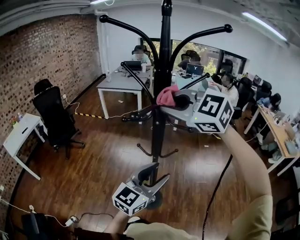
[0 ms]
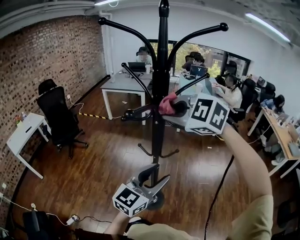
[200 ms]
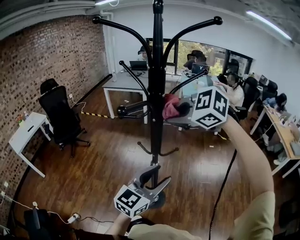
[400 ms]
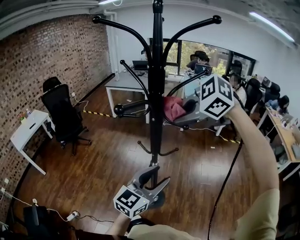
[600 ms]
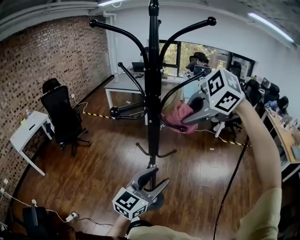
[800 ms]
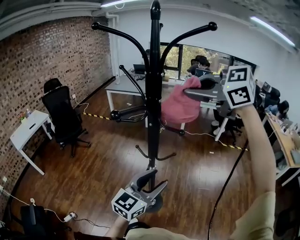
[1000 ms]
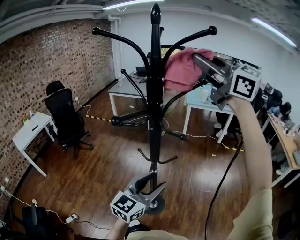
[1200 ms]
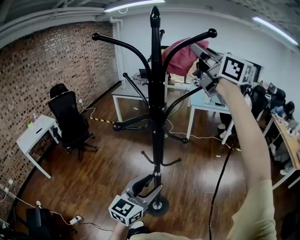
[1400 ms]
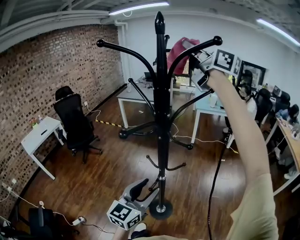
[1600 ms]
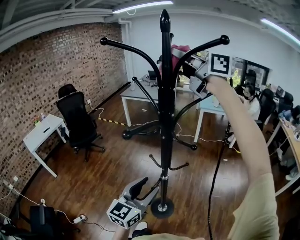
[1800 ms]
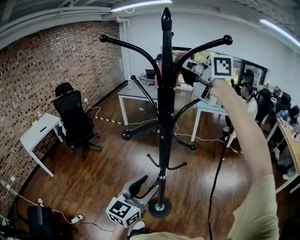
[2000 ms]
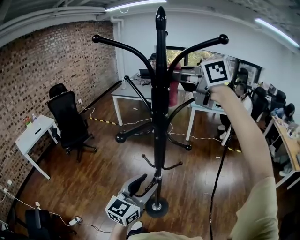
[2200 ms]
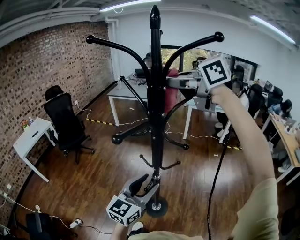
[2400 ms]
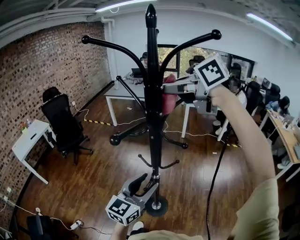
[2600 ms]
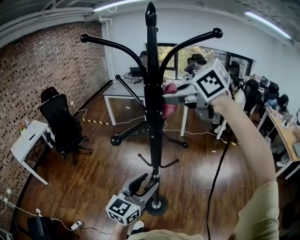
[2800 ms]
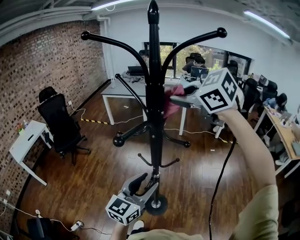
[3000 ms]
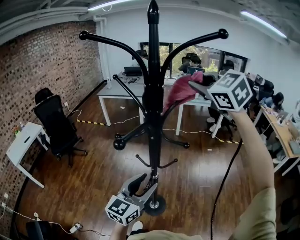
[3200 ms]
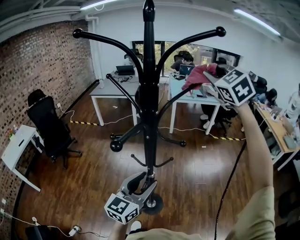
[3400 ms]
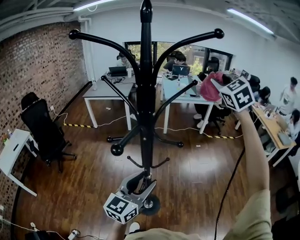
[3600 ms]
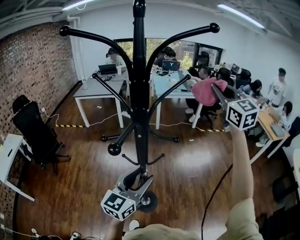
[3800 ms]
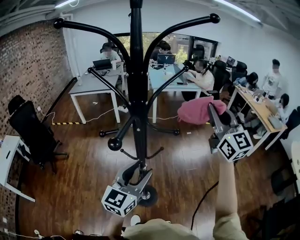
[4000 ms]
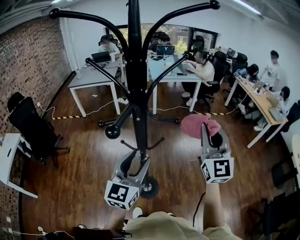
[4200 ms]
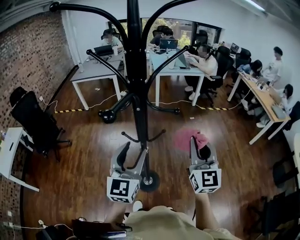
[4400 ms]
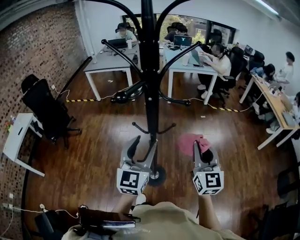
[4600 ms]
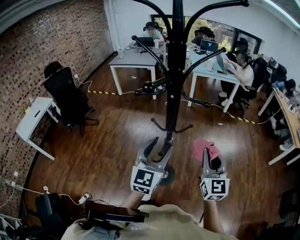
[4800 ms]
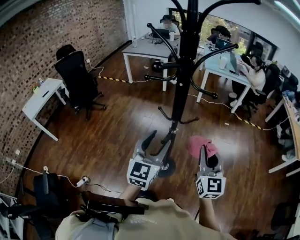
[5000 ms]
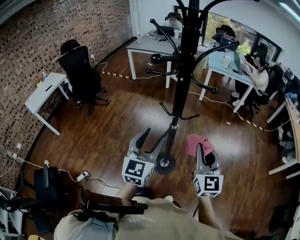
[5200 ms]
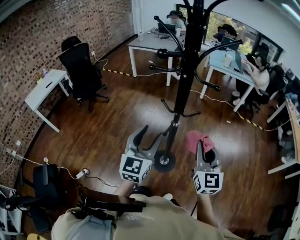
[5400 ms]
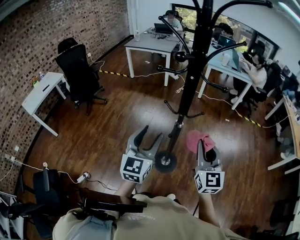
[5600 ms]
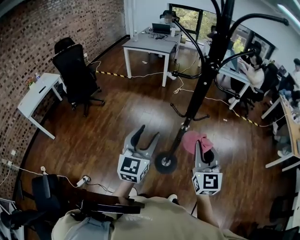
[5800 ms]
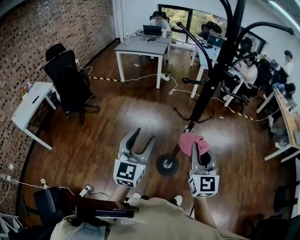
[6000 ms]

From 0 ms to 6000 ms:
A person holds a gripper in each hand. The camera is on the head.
From 0 ms to 1600 ms: The right gripper shifts about 30 cm upward, forward and to the right, and tips its fingers upward by approximately 40 degrees.
From 1600 ms to 3000 ms: The right gripper shifts about 20 cm downward, and angles its fingers downward, by about 50 degrees.
From 3000 ms to 4400 ms: The right gripper shifts approximately 20 cm downward, and tips its fingers upward by roughly 40 degrees.
From 4400 ms to 6000 ms: The grippers both shift to the left by about 20 cm.

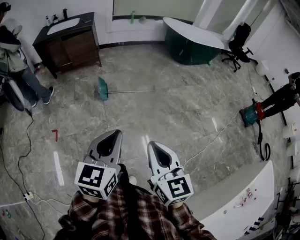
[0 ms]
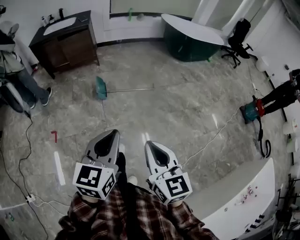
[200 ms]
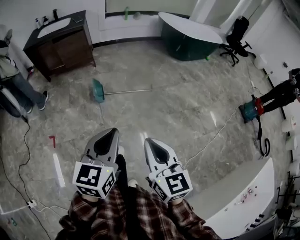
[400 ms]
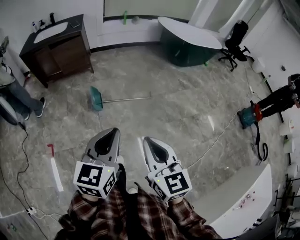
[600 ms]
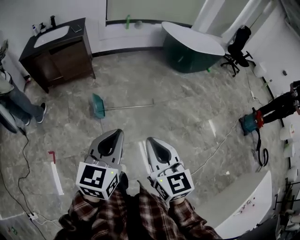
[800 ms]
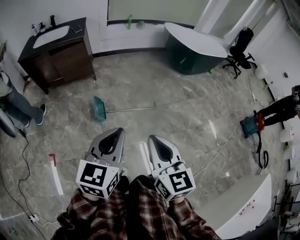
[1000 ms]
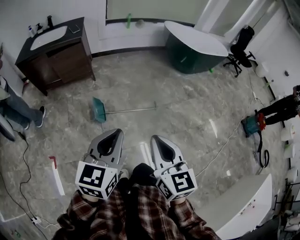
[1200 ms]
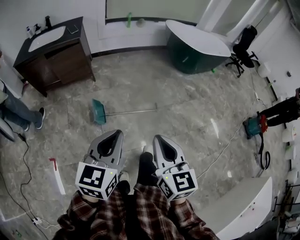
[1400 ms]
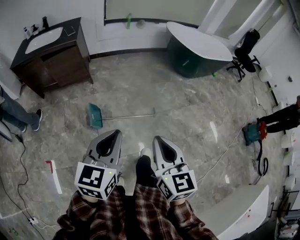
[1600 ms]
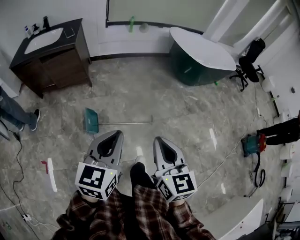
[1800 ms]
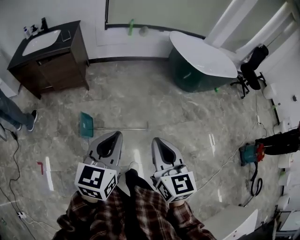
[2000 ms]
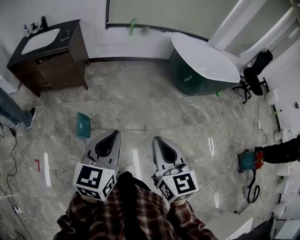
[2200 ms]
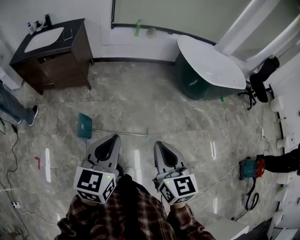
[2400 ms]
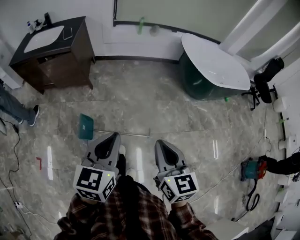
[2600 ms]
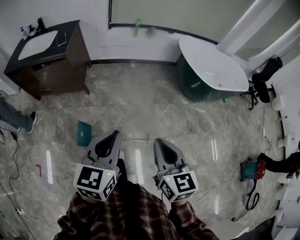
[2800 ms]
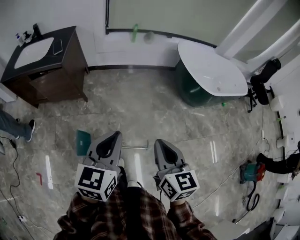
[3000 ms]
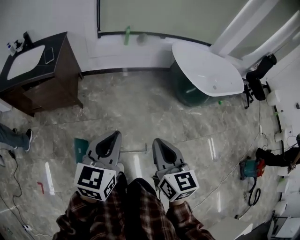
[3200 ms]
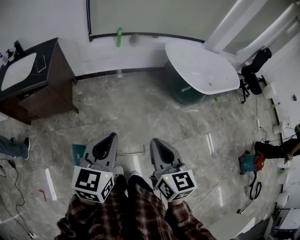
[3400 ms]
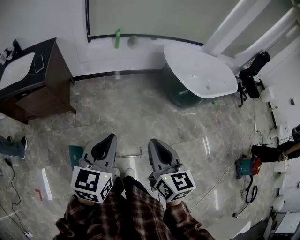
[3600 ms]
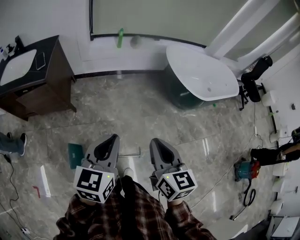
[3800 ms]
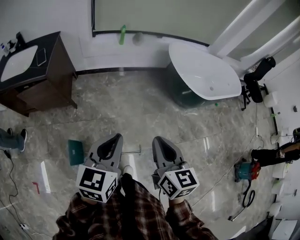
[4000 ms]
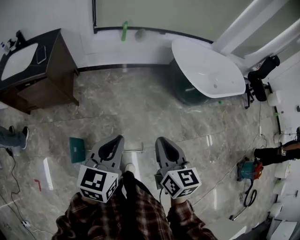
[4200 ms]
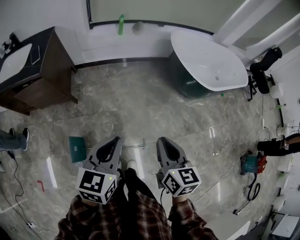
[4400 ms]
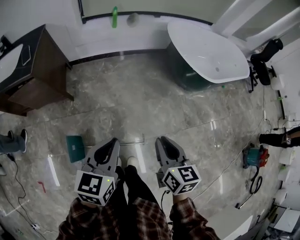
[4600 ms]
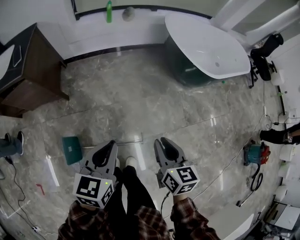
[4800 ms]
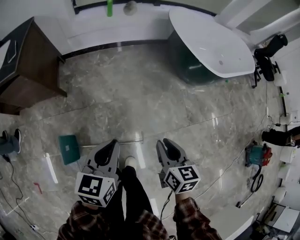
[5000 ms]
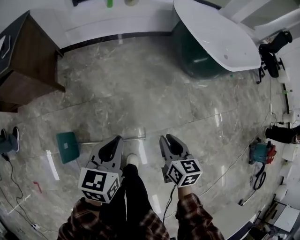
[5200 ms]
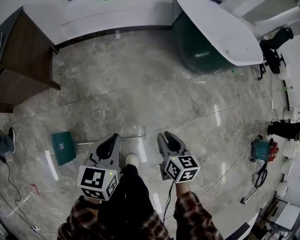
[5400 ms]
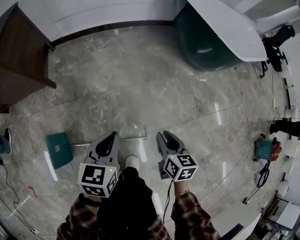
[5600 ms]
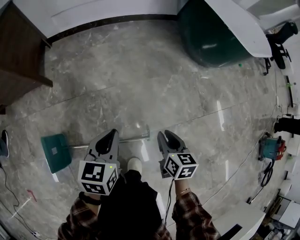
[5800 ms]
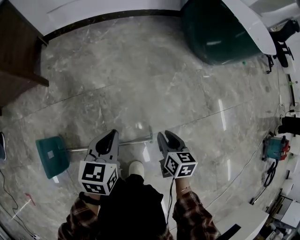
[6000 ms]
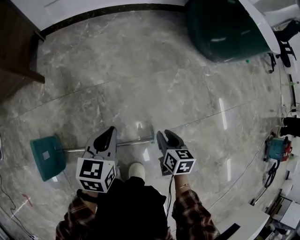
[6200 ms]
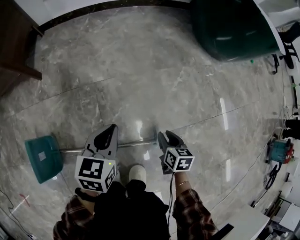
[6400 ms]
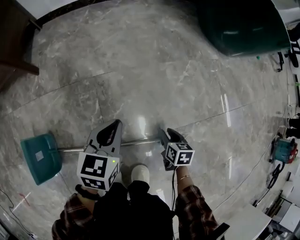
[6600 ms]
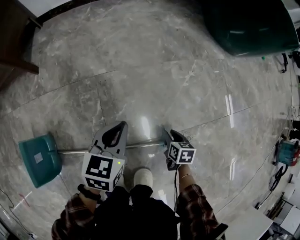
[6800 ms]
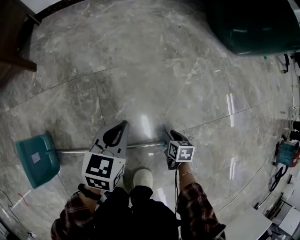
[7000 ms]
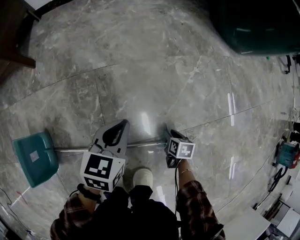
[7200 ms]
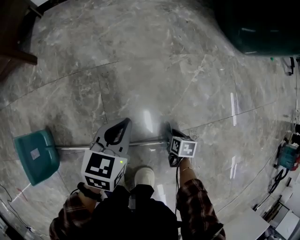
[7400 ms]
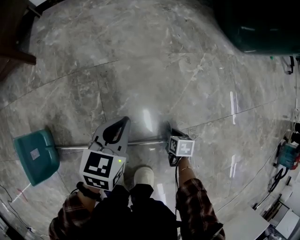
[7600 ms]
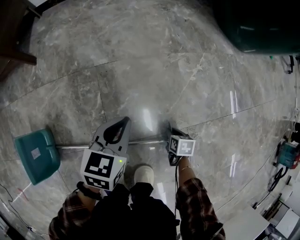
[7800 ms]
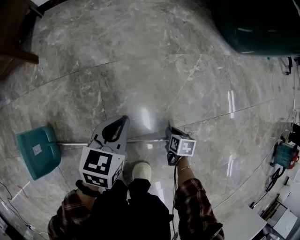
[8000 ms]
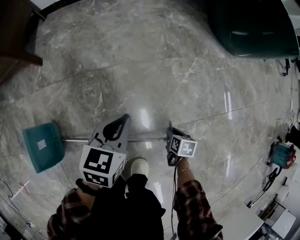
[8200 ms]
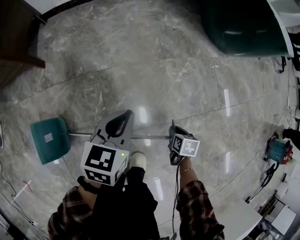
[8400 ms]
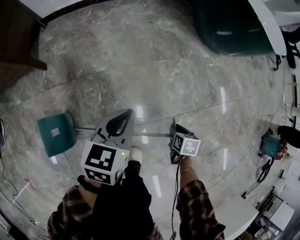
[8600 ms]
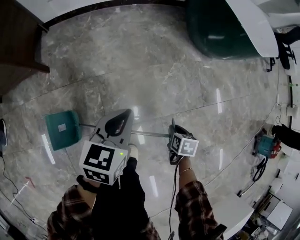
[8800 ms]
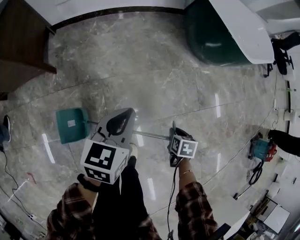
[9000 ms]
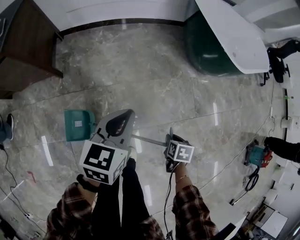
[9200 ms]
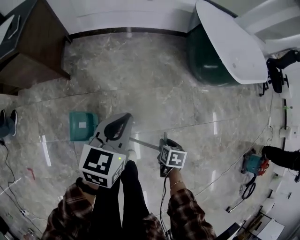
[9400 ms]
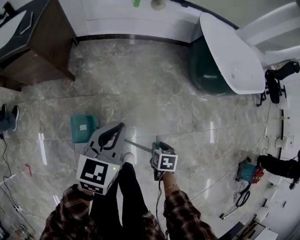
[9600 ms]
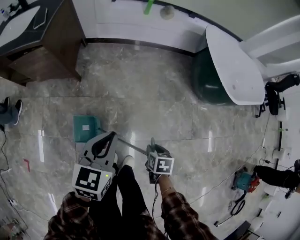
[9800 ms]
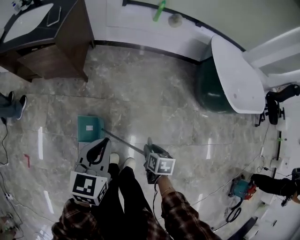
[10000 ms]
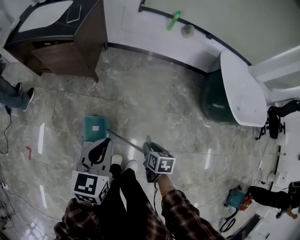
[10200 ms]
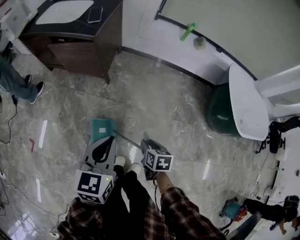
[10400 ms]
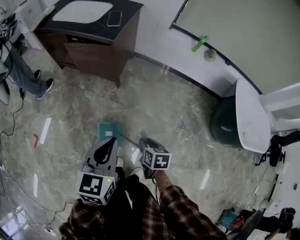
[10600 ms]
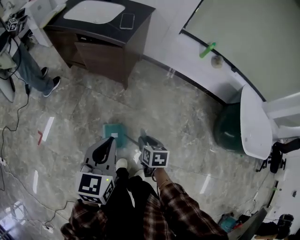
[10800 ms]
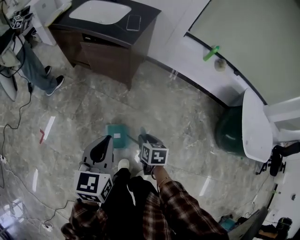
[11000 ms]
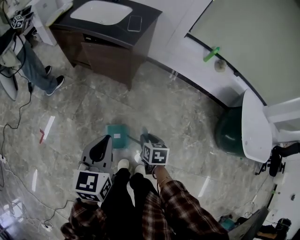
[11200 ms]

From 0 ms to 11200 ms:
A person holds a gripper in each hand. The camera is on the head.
From 0 ms to 1600 ms: The two grippers travel together, forward, about 40 cm.
From 1600 ms to 3200 ms: Both grippers are carried forward, roughly 40 cm.
From 3200 ms to 4800 ms: Both grippers travel together downward, to the right and forward, approximately 20 cm.
From 4800 ms to 6400 ms: The two grippers go roughly 60 cm downward. The right gripper rotates approximately 20 degrees.
From 6400 ms to 8000 ms: The left gripper goes some 10 cm downward. Meanwhile the right gripper shifts about 15 cm downward.
From 8000 ms to 9600 ms: Both grippers travel together upward, approximately 50 cm.
From 9600 ms to 11200 ms: The right gripper ends up about 40 cm from where it was, and swivels some 30 degrees; the left gripper ends up about 40 cm from where it was, and changes its angle by approximately 40 degrees.

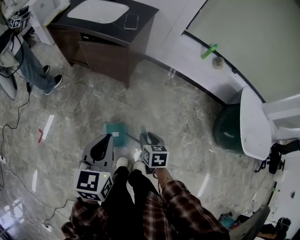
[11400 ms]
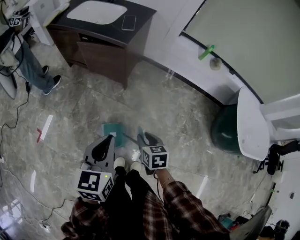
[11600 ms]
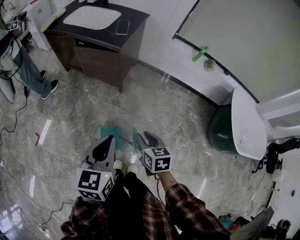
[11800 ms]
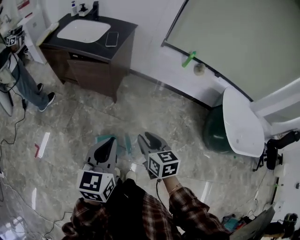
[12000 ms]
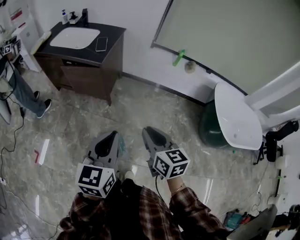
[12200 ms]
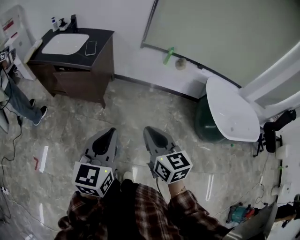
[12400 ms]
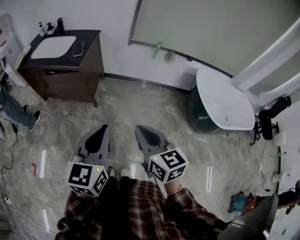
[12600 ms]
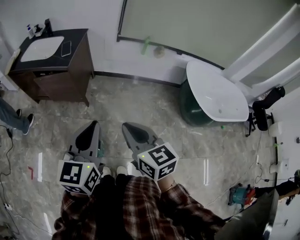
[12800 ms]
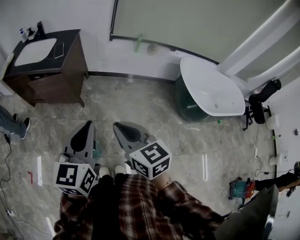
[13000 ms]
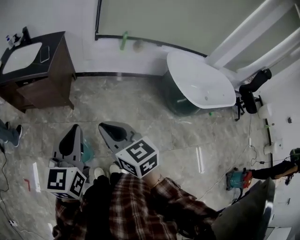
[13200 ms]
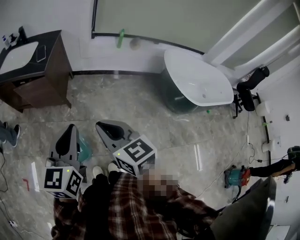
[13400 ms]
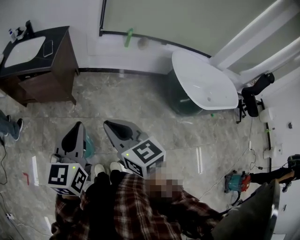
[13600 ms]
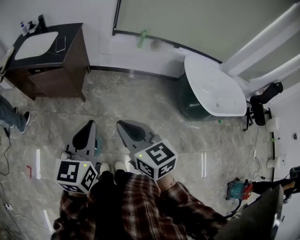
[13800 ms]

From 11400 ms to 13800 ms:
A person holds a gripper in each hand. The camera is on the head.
From 11400 ms to 12600 ms: The left gripper moves to the right and upward, about 25 cm, and turns by roughly 20 degrees. Meanwhile the right gripper shifts roughly 30 cm upward, tilts its fingers about 30 degrees upward, and closes its fingers.
From 12600 ms to 13800 ms: There are only small adjustments of the grippers.

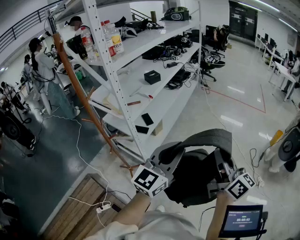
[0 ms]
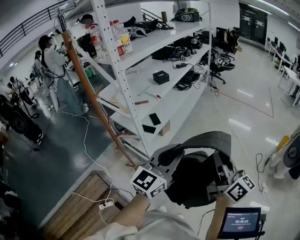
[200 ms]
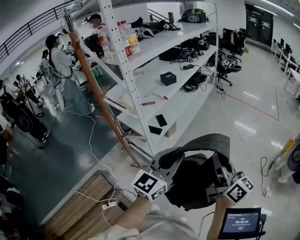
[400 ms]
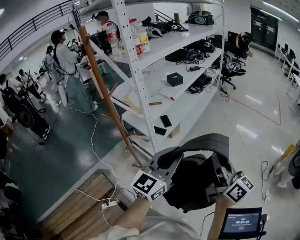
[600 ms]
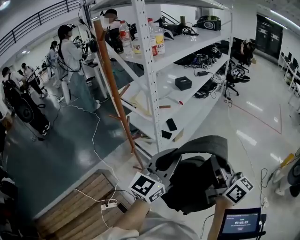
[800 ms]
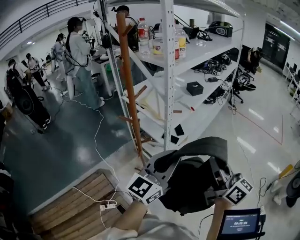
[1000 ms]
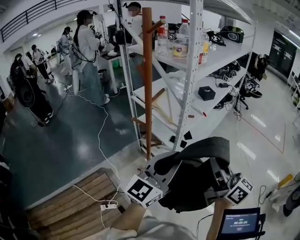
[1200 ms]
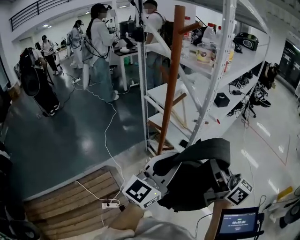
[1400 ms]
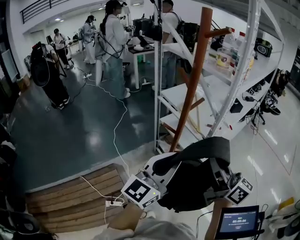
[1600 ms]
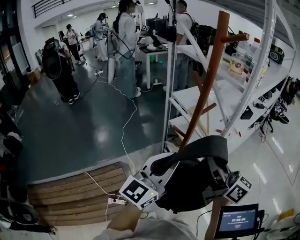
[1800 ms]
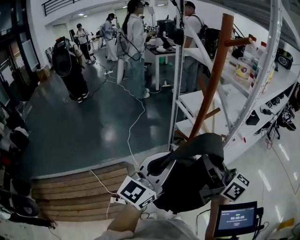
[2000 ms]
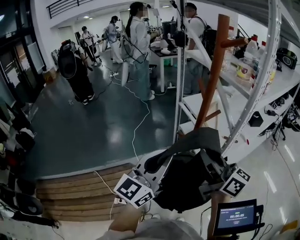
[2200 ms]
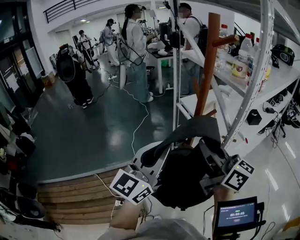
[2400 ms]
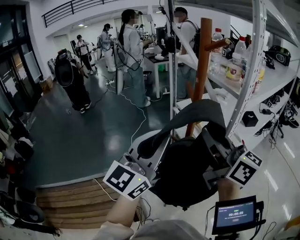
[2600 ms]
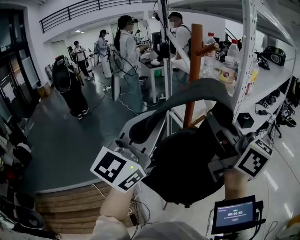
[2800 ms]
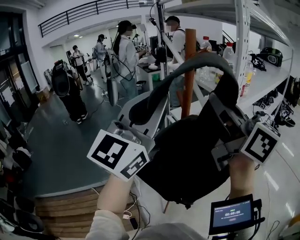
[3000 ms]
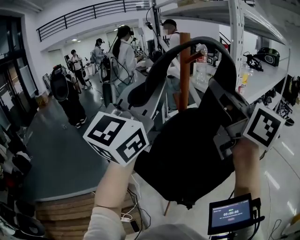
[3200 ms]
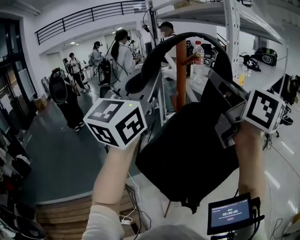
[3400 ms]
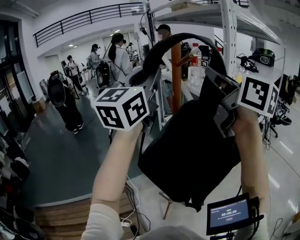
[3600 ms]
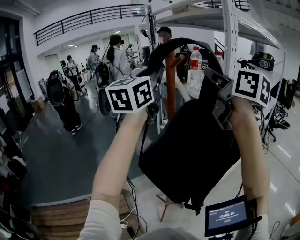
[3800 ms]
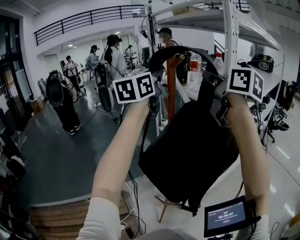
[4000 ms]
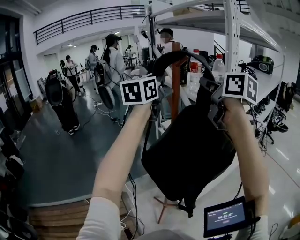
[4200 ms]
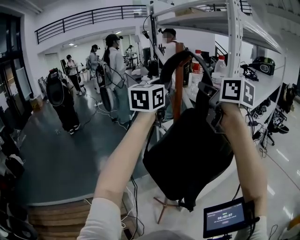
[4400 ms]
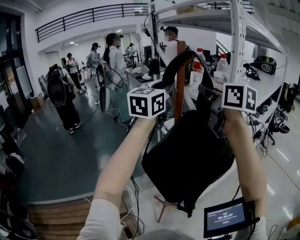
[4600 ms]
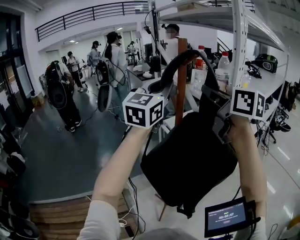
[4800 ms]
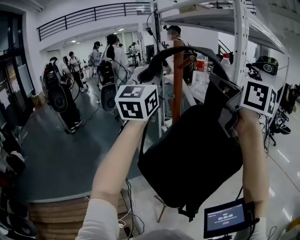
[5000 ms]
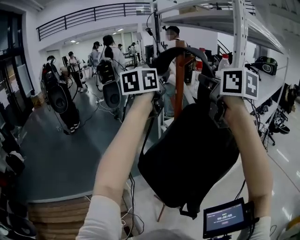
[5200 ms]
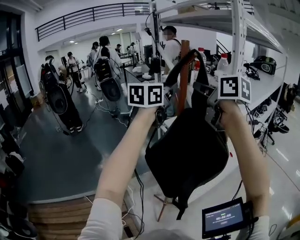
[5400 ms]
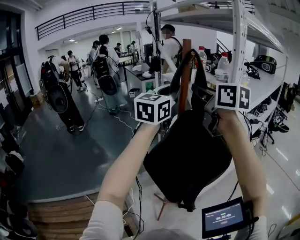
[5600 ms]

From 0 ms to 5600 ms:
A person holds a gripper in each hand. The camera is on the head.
From 0 ms to 1400 ms: Both grippers move to the left, roughly 40 cm. The right gripper rotates about 30 degrees.
From 1400 ms to 2800 ms: Both grippers move upward and forward, roughly 20 cm. The left gripper swivels some 30 degrees.
From 2800 ms to 4200 ms: The right gripper shifts roughly 15 cm forward and upward, and turns by about 20 degrees, while the left gripper travels forward by about 25 cm.
From 4200 ms to 5600 ms: The left gripper heads downward, covering approximately 5 cm. The right gripper shifts by approximately 5 cm.
